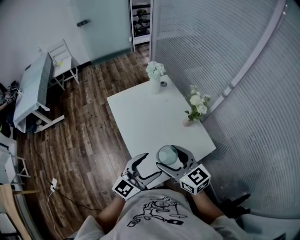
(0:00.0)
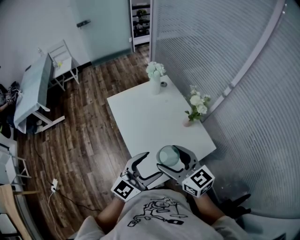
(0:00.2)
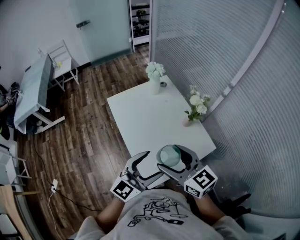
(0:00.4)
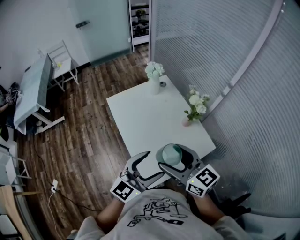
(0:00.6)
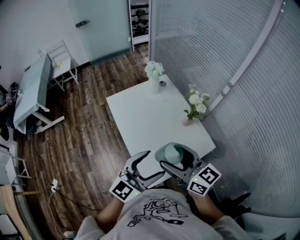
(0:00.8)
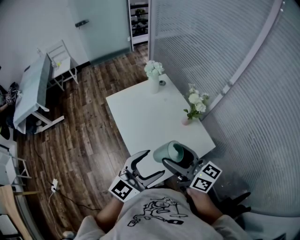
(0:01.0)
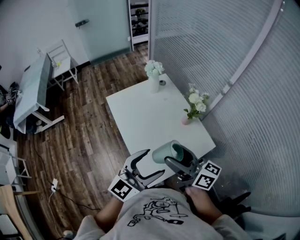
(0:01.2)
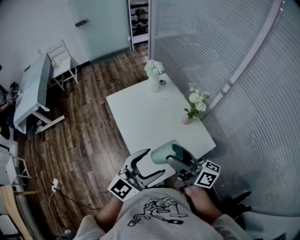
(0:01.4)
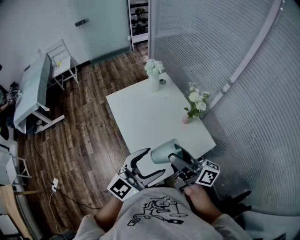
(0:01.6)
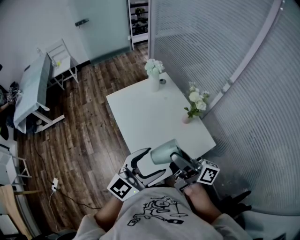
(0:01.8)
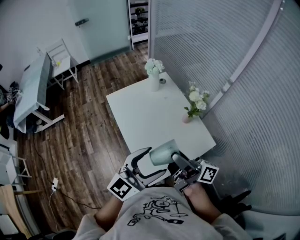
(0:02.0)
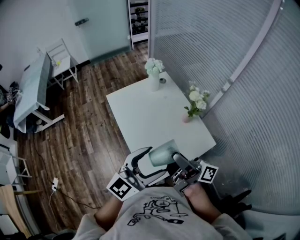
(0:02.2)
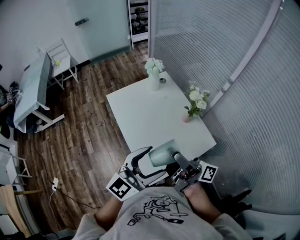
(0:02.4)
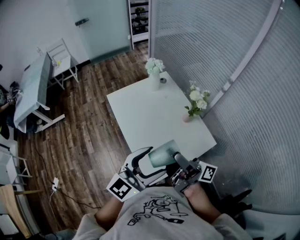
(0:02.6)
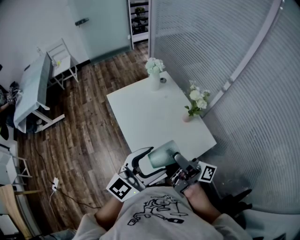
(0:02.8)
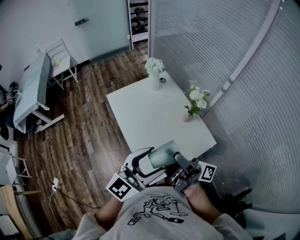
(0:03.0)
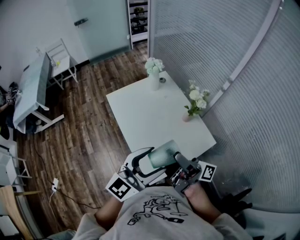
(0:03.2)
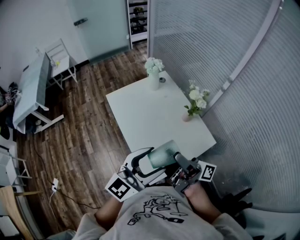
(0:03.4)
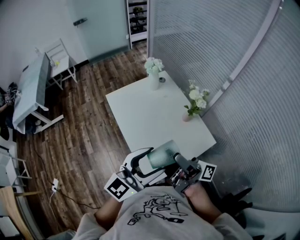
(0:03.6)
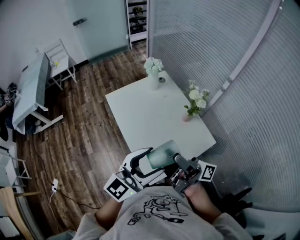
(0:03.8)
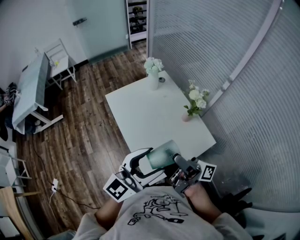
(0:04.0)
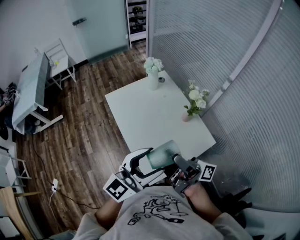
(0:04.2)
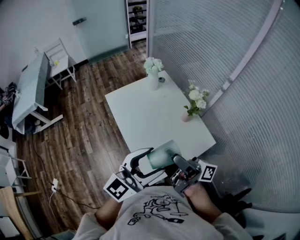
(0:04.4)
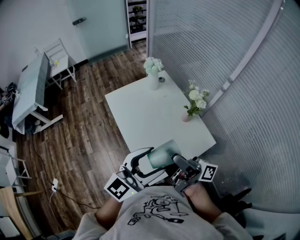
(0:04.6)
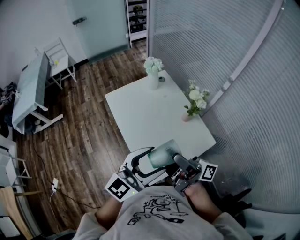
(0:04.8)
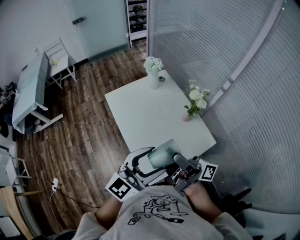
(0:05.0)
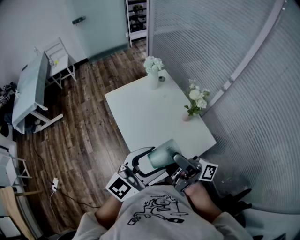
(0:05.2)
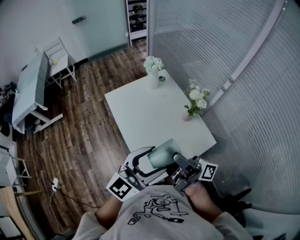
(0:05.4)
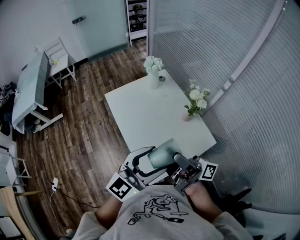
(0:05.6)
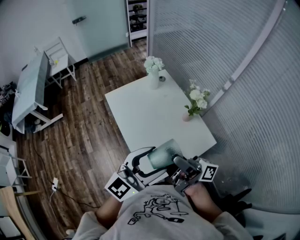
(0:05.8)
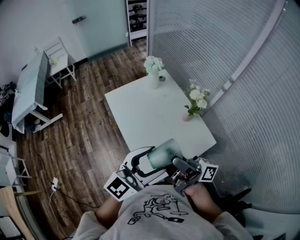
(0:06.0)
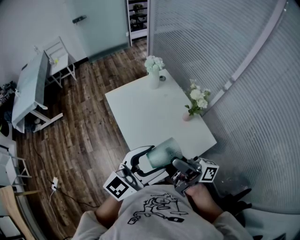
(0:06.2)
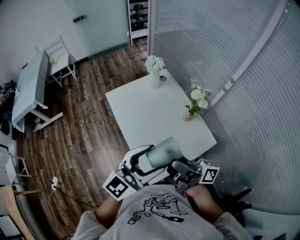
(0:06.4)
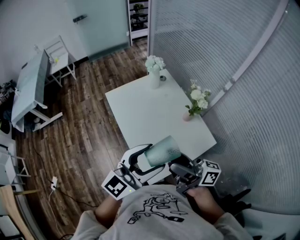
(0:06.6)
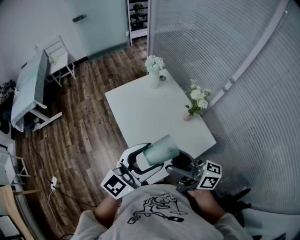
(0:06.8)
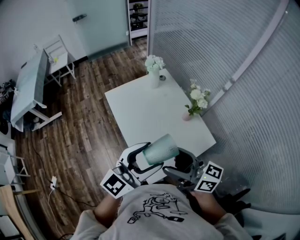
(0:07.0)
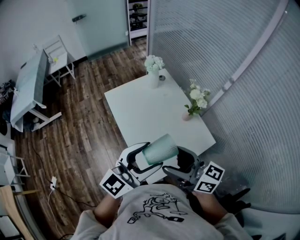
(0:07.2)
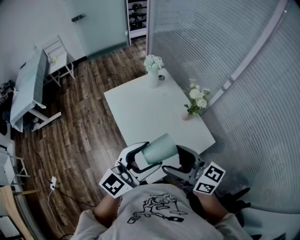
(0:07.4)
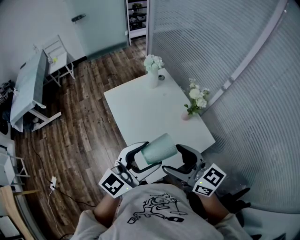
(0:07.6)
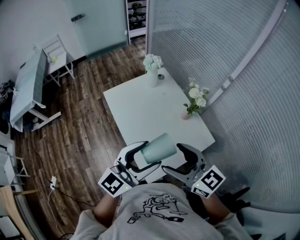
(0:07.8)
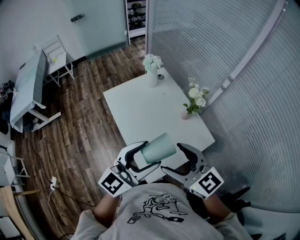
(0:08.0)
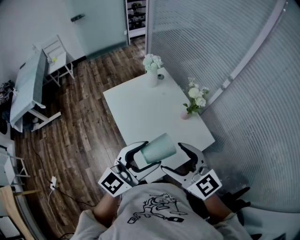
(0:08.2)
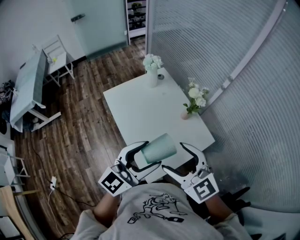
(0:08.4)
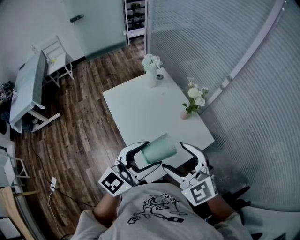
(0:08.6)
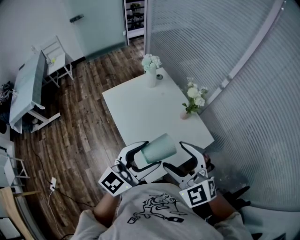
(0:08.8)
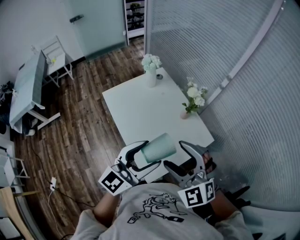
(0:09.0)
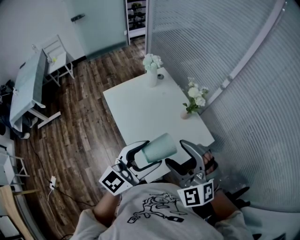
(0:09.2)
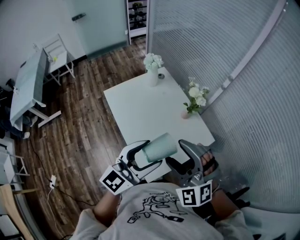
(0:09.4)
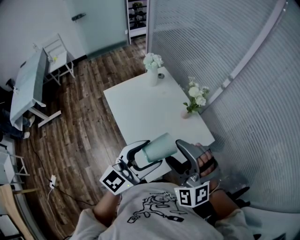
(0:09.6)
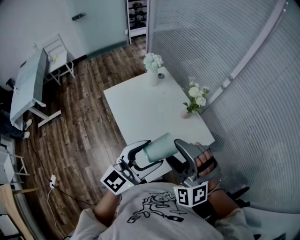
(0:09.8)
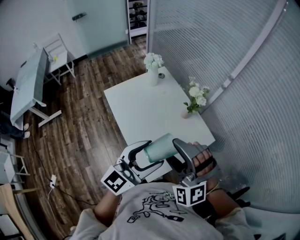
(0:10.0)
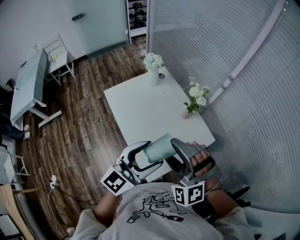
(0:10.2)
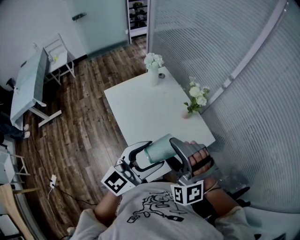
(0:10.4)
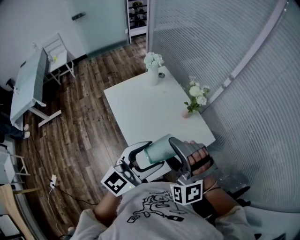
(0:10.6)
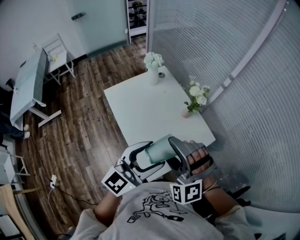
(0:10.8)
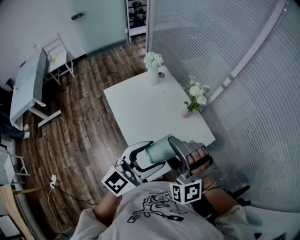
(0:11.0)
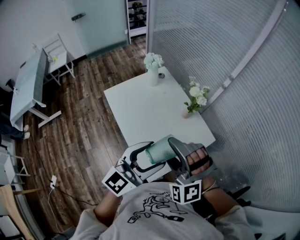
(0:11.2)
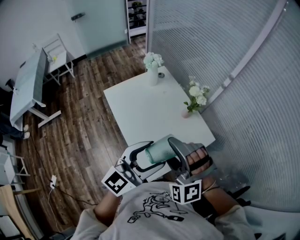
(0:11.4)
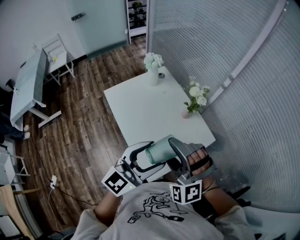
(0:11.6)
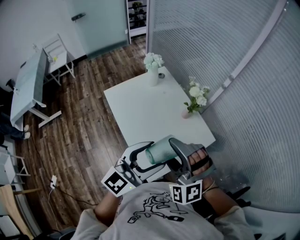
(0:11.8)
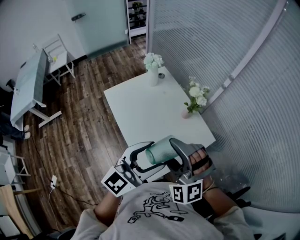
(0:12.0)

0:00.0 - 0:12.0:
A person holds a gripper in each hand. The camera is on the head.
0:00.0 - 0:01.6: Both grippers travel together upward, approximately 5 cm. The right gripper twists some 50 degrees clockwise, seen from behind.
0:01.6 - 0:03.0: The right gripper turns by about 30 degrees.
0:03.0 - 0:06.0: The grippers move only a little.
0:06.0 - 0:07.6: The right gripper rotates around the line of its fingers by roughly 50 degrees, counterclockwise from behind.
0:07.6 - 0:09.0: The right gripper rolls counterclockwise, seen from behind, by roughly 60 degrees.
0:09.0 - 0:10.4: The right gripper changes its angle by some 30 degrees.
0:10.4 - 0:12.0: The grippers stay close to where they were, moving slightly.

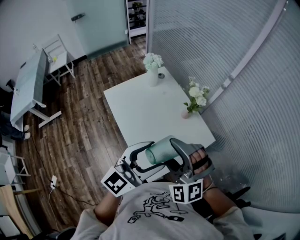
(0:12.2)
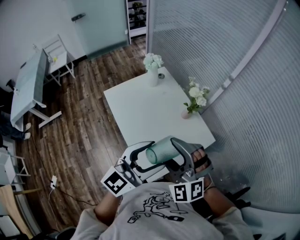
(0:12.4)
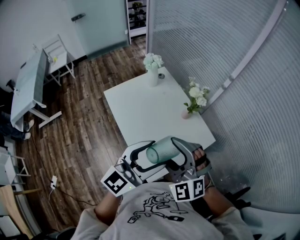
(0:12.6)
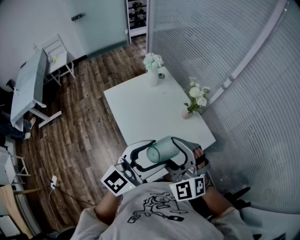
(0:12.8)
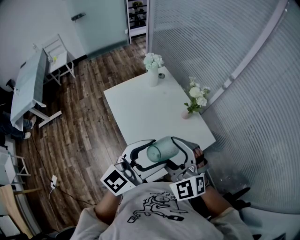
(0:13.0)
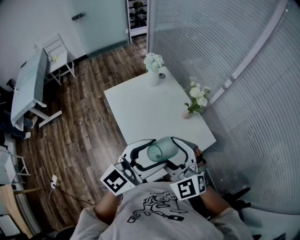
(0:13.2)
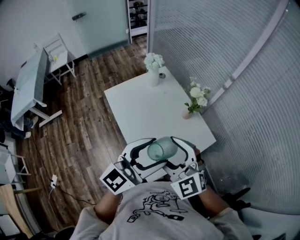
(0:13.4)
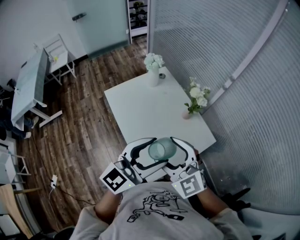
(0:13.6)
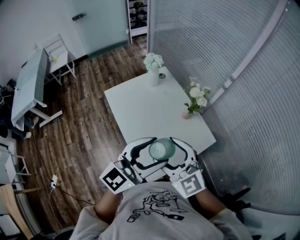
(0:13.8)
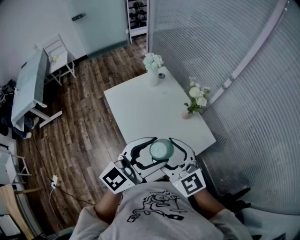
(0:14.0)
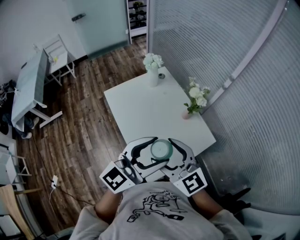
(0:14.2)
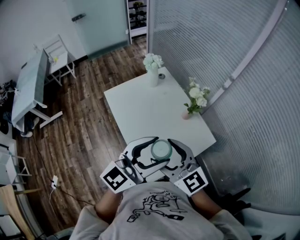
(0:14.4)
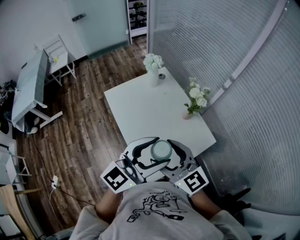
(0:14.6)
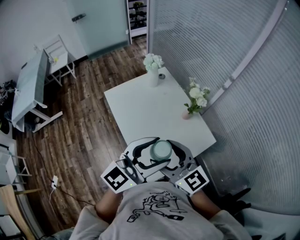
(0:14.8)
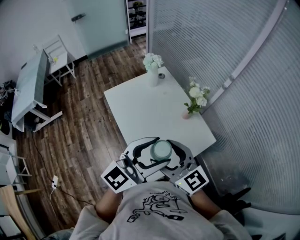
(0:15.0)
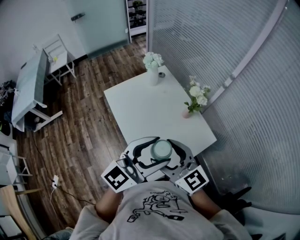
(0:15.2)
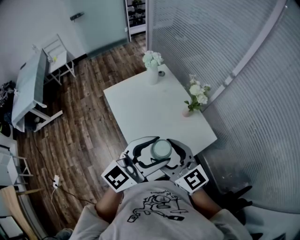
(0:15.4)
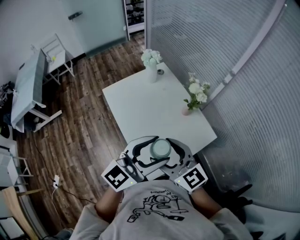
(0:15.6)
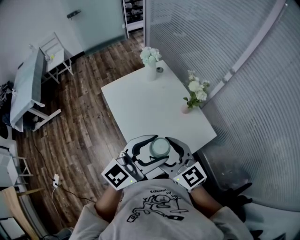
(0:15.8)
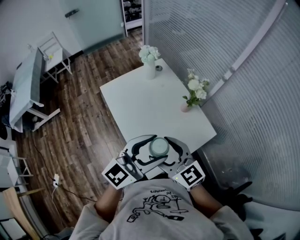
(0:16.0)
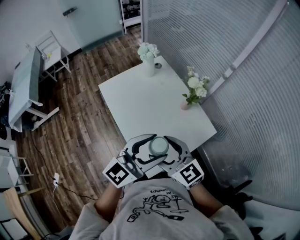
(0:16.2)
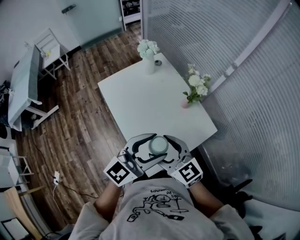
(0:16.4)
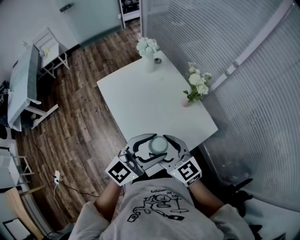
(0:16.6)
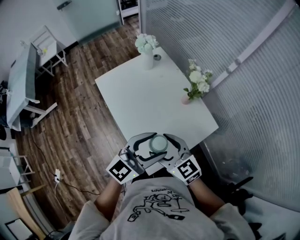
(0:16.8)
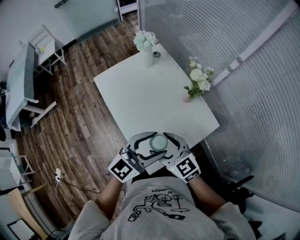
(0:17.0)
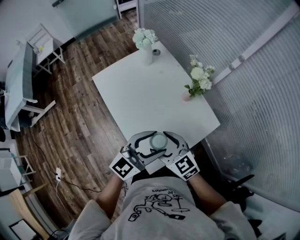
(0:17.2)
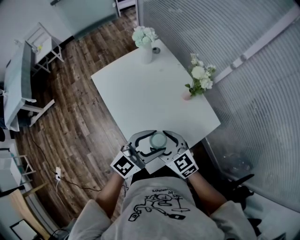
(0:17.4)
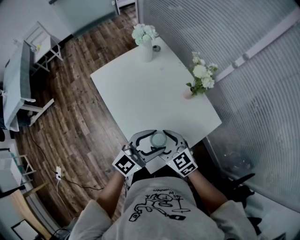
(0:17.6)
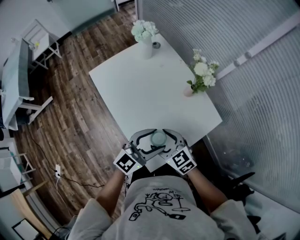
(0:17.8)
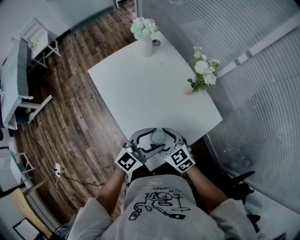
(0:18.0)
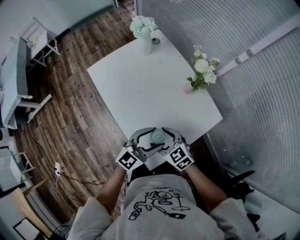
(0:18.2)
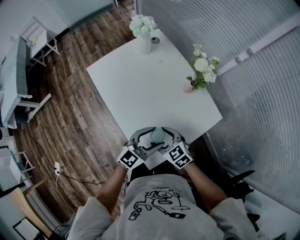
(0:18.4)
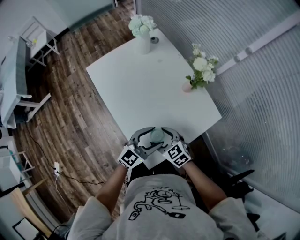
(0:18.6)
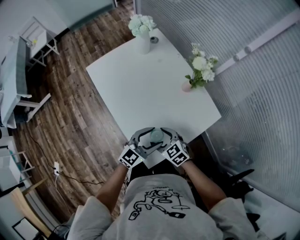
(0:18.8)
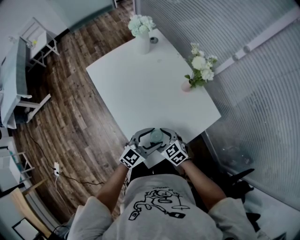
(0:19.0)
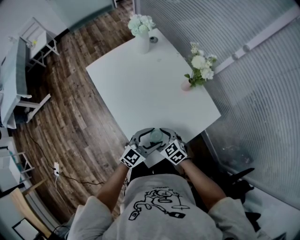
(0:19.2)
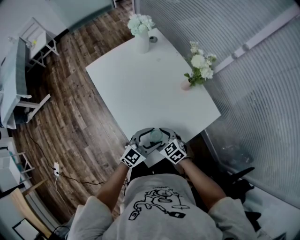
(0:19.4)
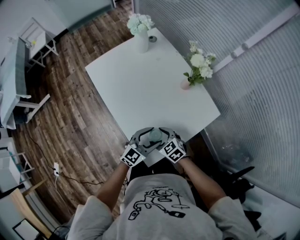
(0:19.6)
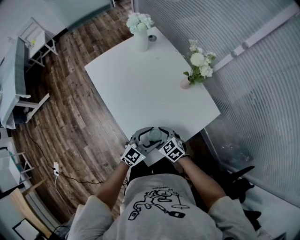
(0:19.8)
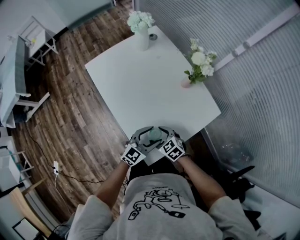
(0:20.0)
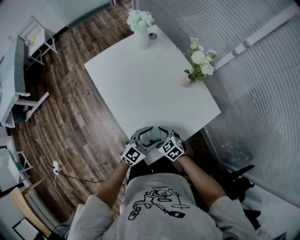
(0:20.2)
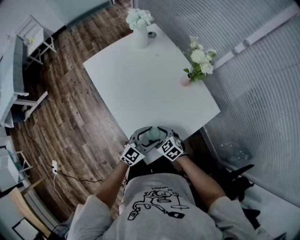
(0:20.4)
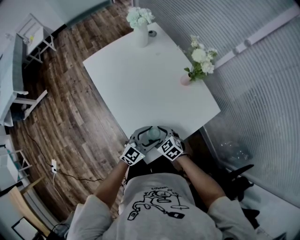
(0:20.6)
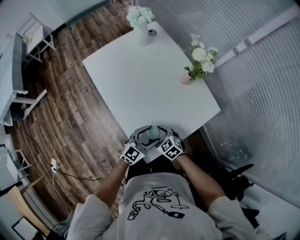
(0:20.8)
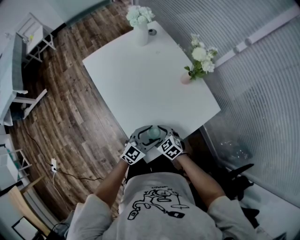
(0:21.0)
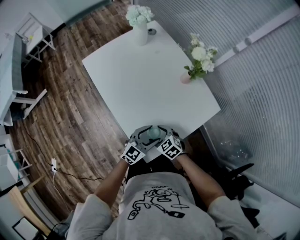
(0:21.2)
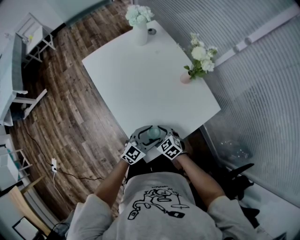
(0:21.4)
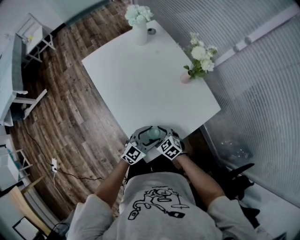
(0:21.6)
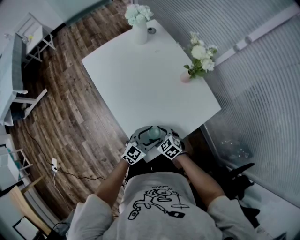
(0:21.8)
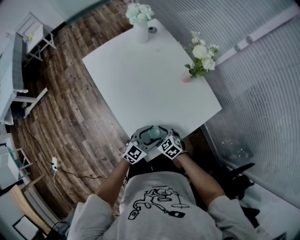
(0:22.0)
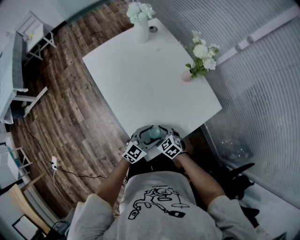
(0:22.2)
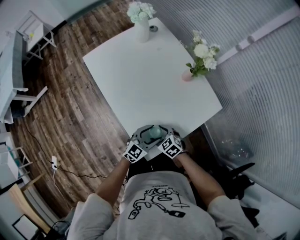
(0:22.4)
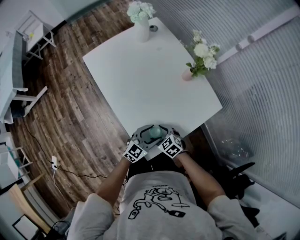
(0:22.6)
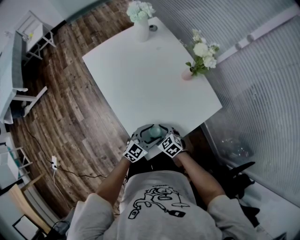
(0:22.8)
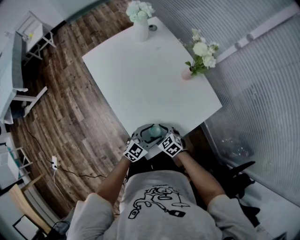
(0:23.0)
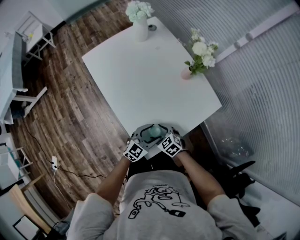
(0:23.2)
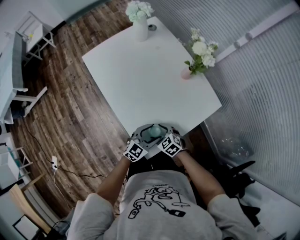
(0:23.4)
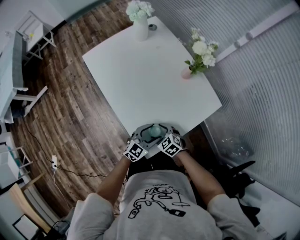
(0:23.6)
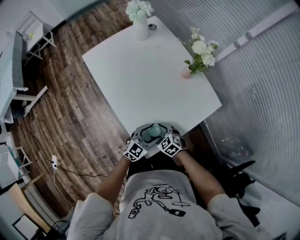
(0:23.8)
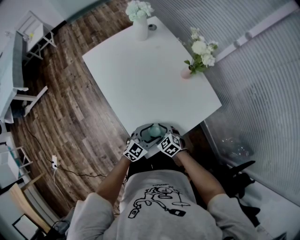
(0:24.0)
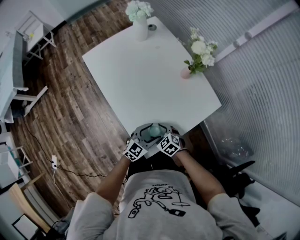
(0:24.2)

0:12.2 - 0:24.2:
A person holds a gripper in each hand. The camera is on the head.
0:12.2 - 0:13.8: The right gripper rotates around the line of its fingers by approximately 40 degrees, clockwise from behind.
0:13.8 - 0:15.2: The right gripper swivels about 20 degrees.
0:15.2 - 0:16.6: The grippers both shift downward by approximately 10 cm.
0:16.6 - 0:18.2: The grippers both shift downward by roughly 15 cm.
0:18.2 - 0:19.8: The grippers both shift downward by roughly 10 cm.
0:19.8 - 0:21.2: The grippers stay close to where they were, moving slightly.
0:21.2 - 0:22.6: There are only small adjustments of the grippers.
0:22.6 - 0:24.2: Both grippers stay put.
